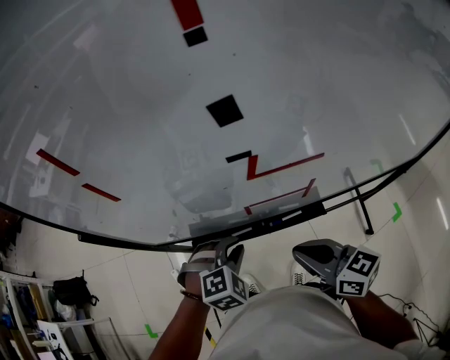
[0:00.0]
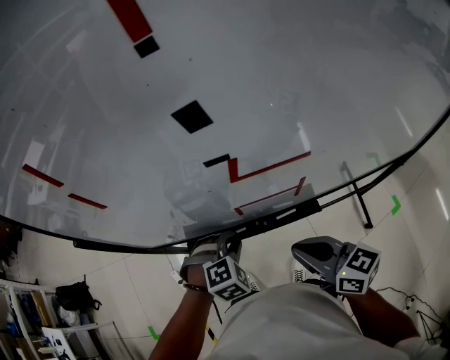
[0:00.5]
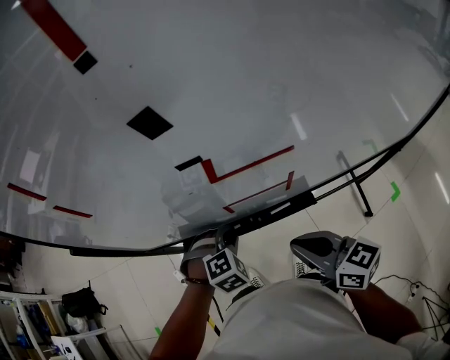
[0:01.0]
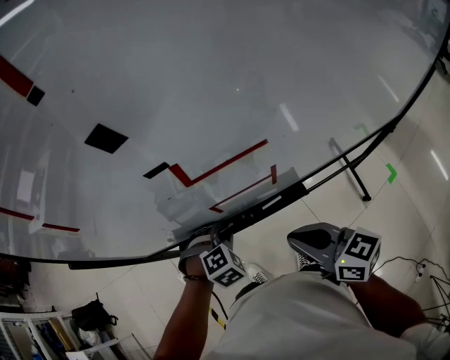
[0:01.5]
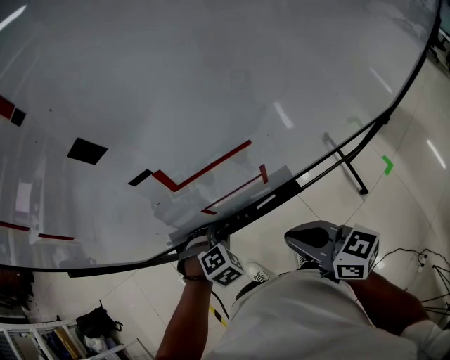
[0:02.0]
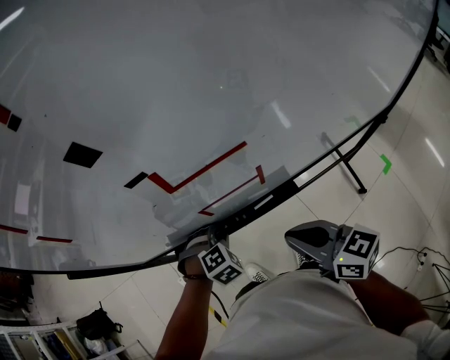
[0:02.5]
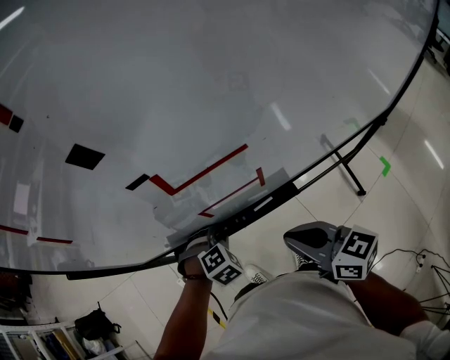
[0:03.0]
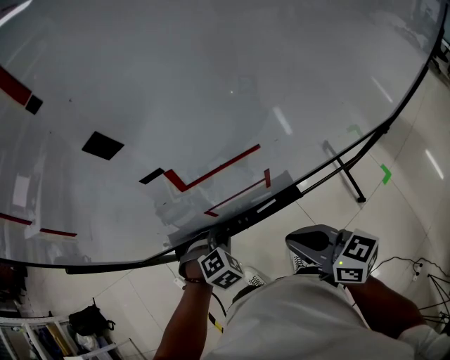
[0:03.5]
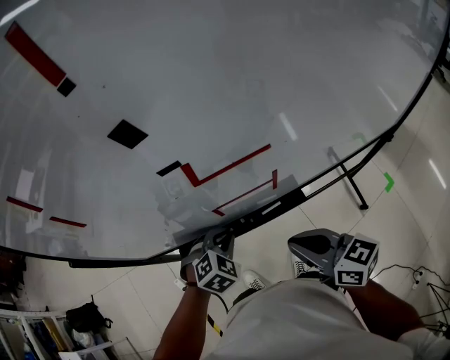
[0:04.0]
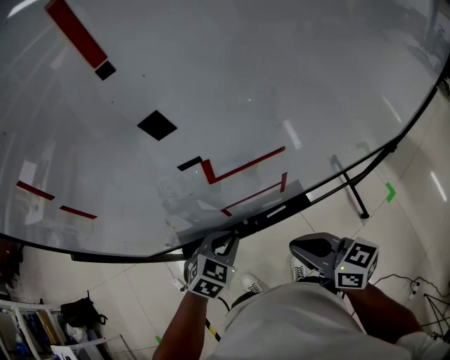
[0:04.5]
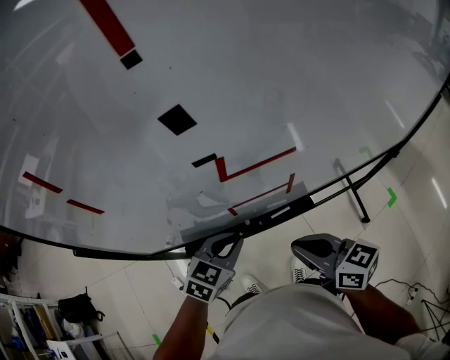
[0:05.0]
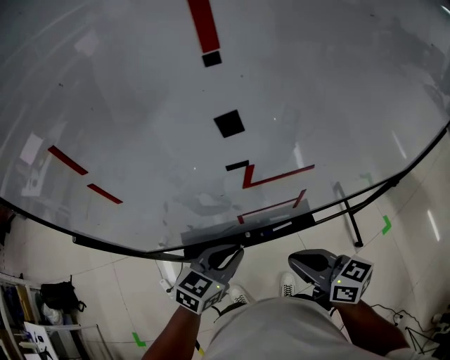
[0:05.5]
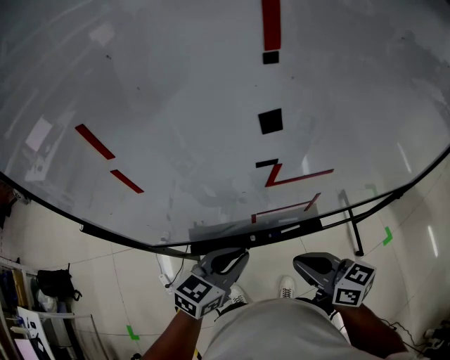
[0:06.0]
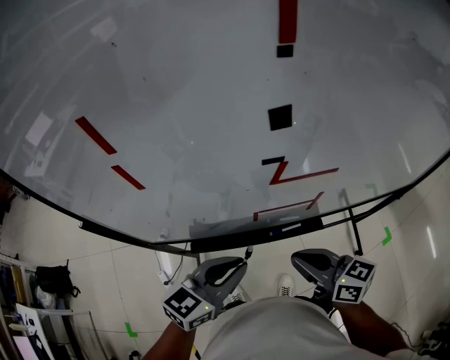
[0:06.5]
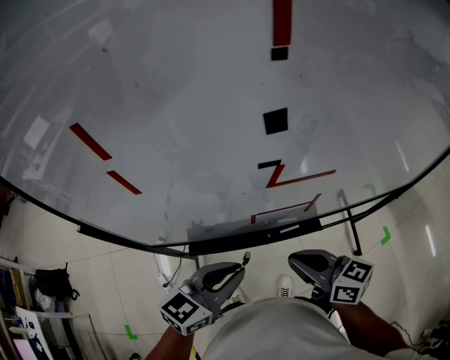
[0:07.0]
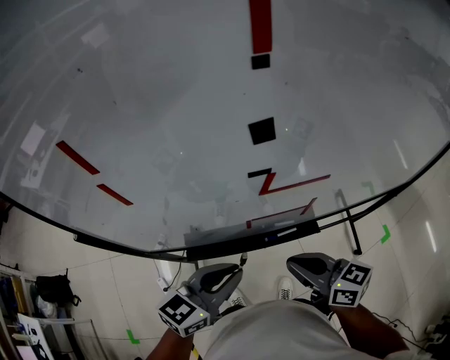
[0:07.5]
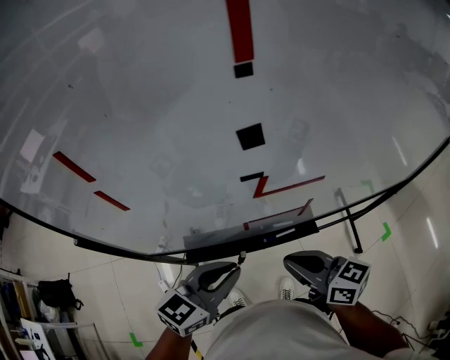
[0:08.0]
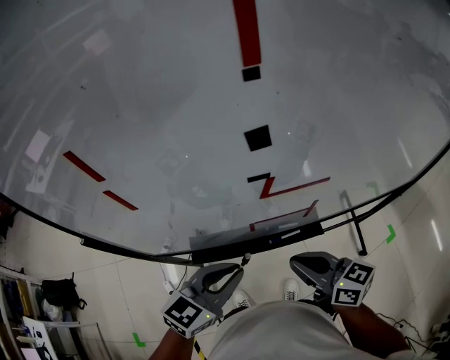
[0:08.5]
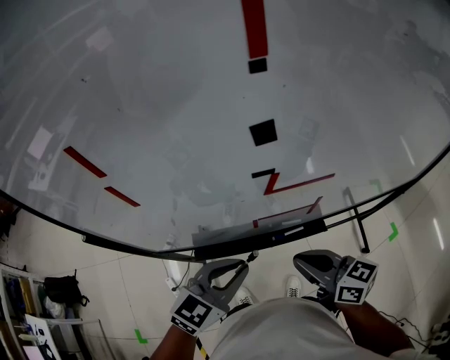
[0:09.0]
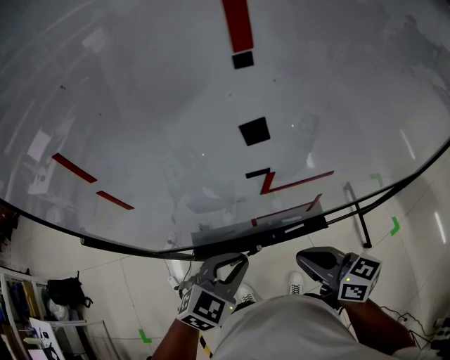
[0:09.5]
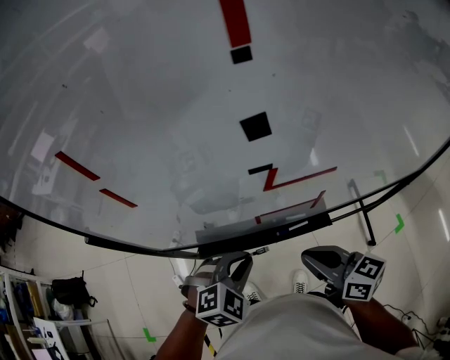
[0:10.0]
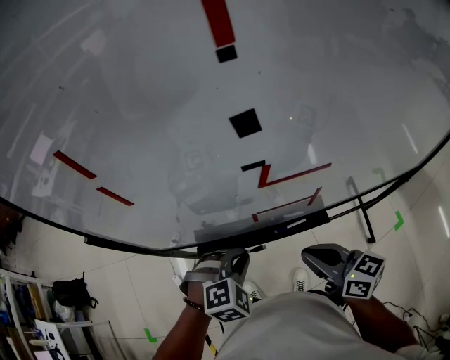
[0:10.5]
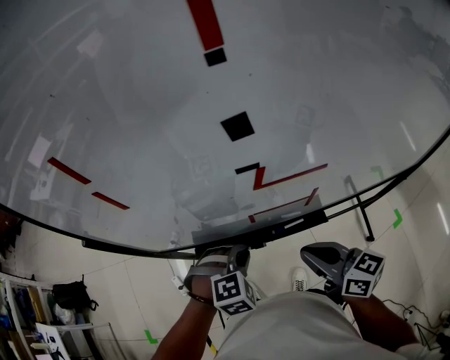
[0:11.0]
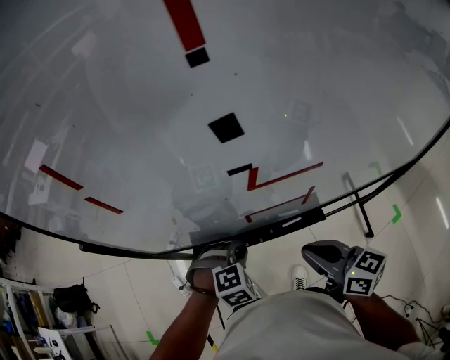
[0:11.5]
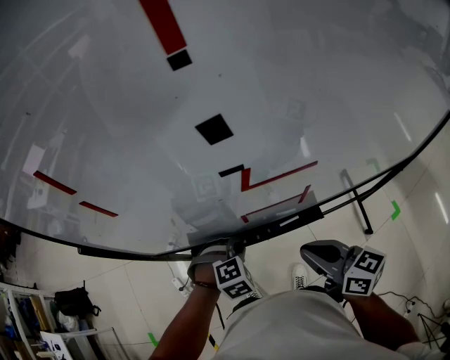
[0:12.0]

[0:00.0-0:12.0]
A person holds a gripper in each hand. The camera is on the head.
0:00.0 to 0:02.0: The left gripper heads downward, covering approximately 10 cm.
0:02.0 to 0:04.0: The grippers make only small movements.
0:04.0 to 0:06.0: The left gripper travels upward by about 10 cm, and angles its fingers upward, by about 30 degrees.
0:06.0 to 0:08.0: The grippers make only small movements.
0:08.0 to 0:10.0: The left gripper travels downward by approximately 10 cm, and tips its fingers downward by about 30 degrees.
0:10.0 to 0:12.0: The left gripper moves downward, approximately 10 cm, and swivels roughly 20 degrees.

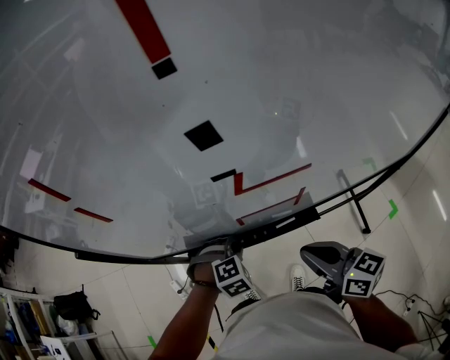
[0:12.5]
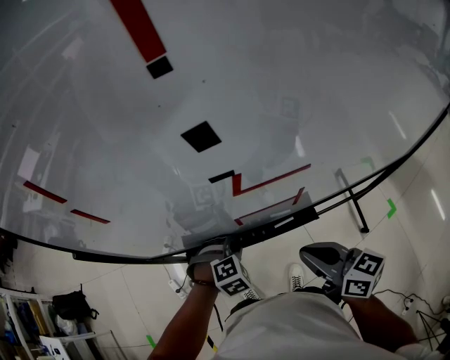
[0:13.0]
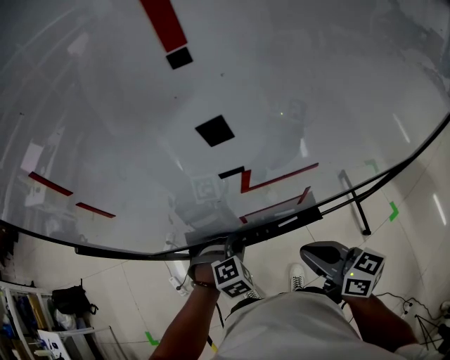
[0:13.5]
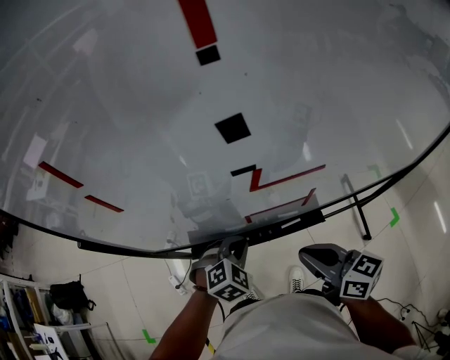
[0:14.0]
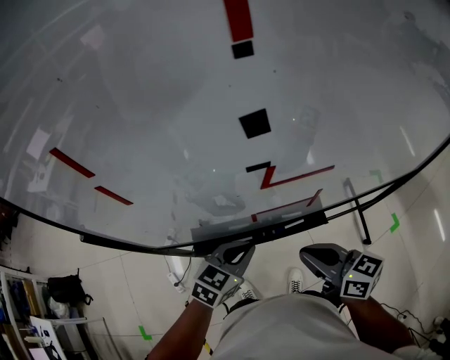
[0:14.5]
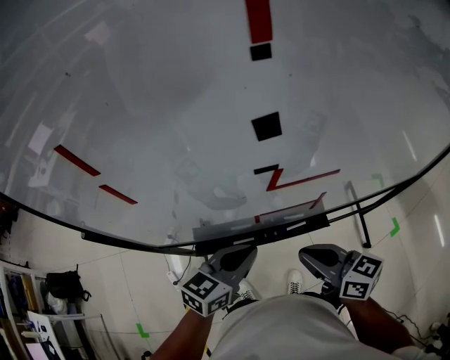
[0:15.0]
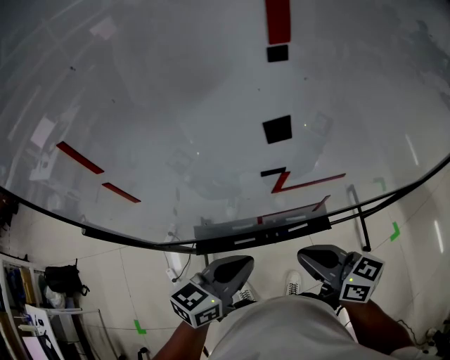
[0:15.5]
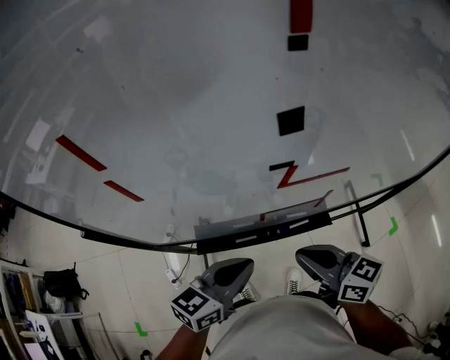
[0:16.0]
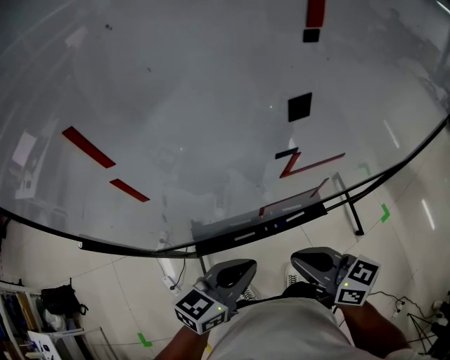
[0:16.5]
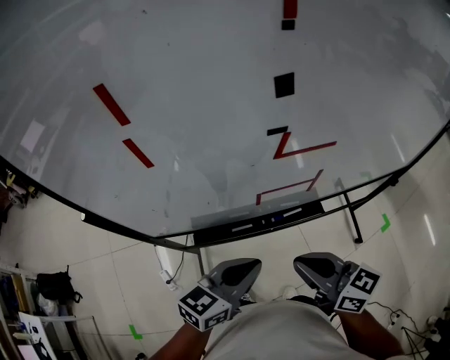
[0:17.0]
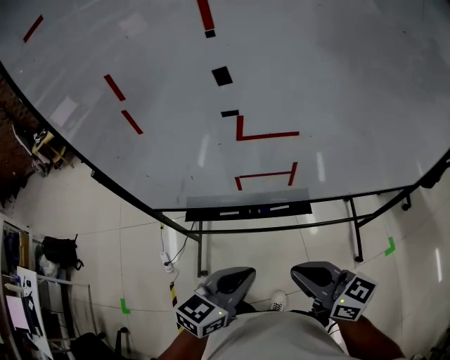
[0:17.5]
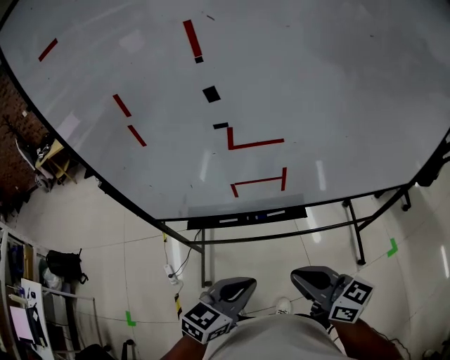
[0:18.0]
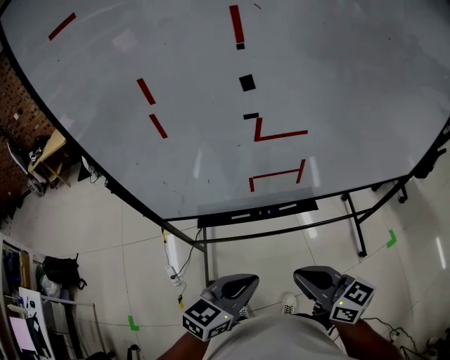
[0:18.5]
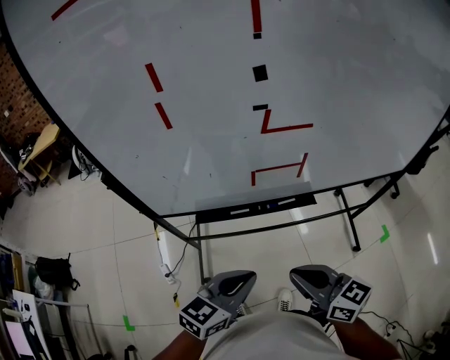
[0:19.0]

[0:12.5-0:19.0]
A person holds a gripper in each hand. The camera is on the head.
0:12.5 to 0:14.5: The left gripper is displaced upward by roughly 10 cm, and tilts its fingers some 30 degrees upward.
0:14.5 to 0:17.0: The left gripper is displaced backward and upward by about 10 cm, and changes its angle by approximately 20 degrees. Meanwhile the right gripper heads backward, covering roughly 5 cm.
0:17.0 to 0:19.0: Both grippers move backward, some 10 cm.

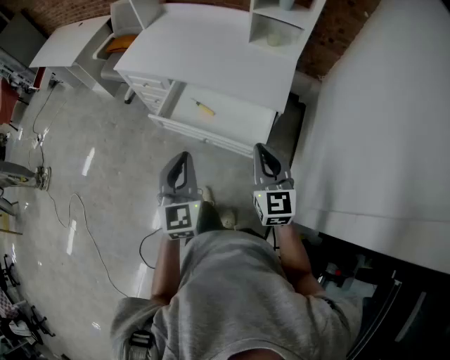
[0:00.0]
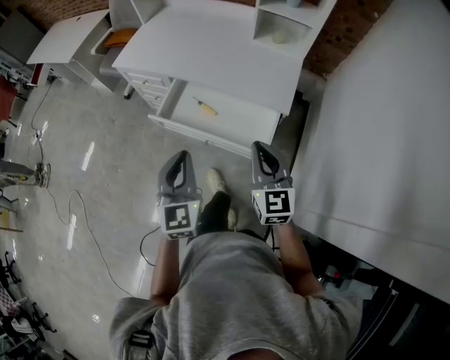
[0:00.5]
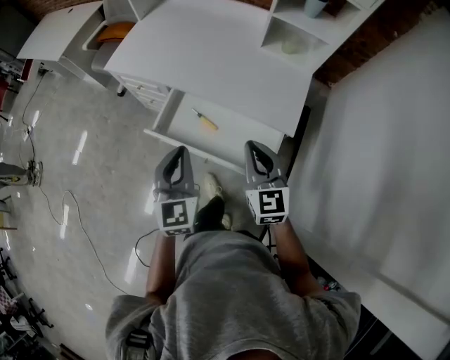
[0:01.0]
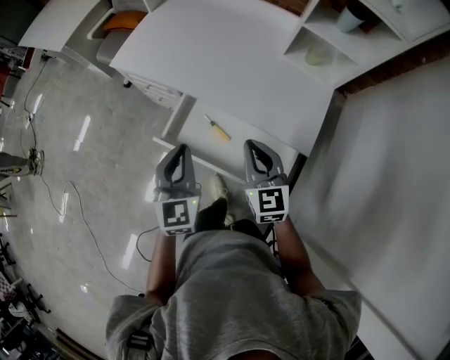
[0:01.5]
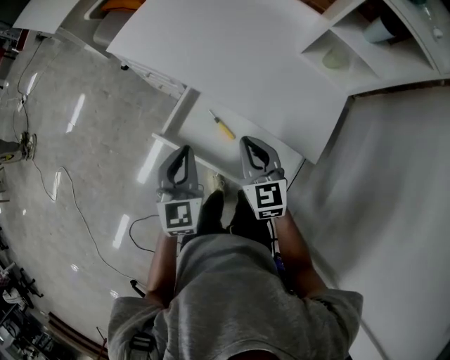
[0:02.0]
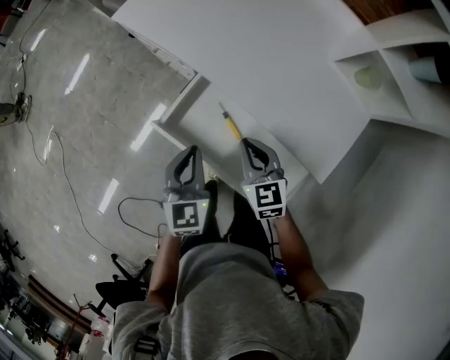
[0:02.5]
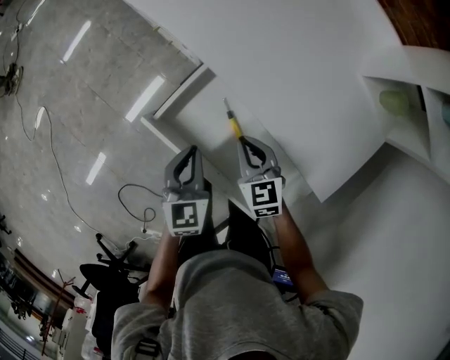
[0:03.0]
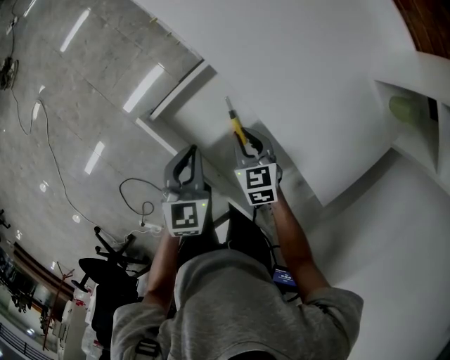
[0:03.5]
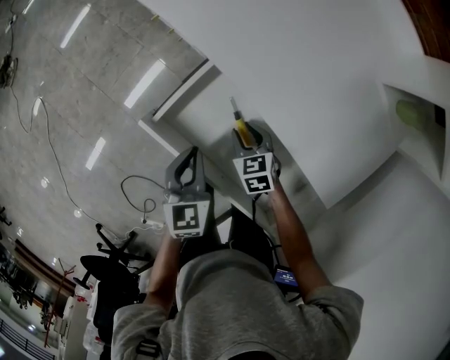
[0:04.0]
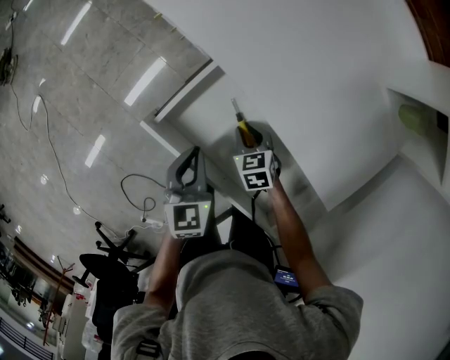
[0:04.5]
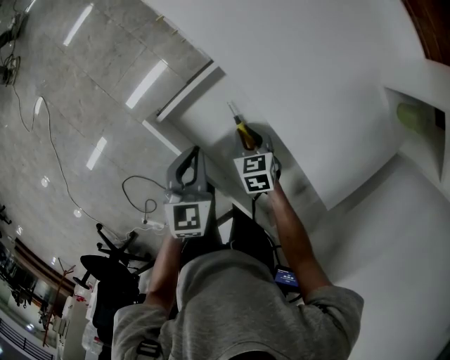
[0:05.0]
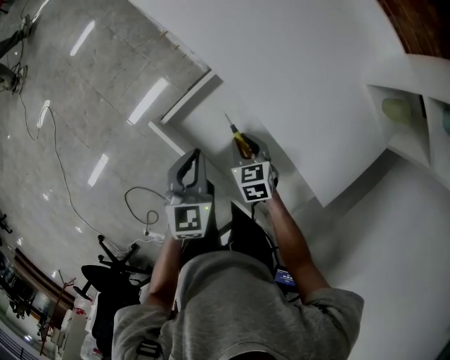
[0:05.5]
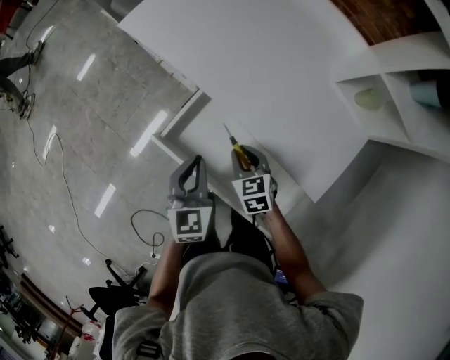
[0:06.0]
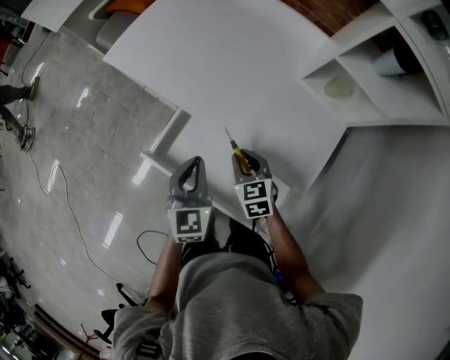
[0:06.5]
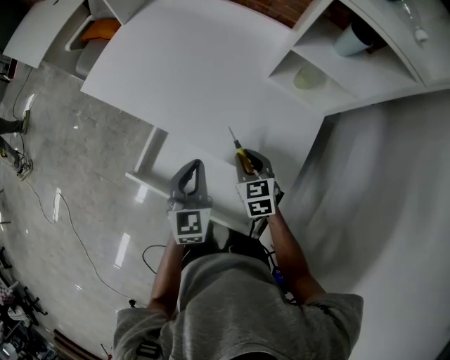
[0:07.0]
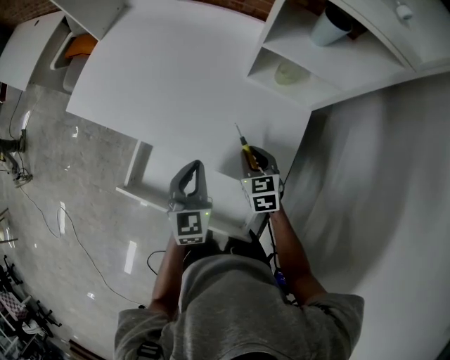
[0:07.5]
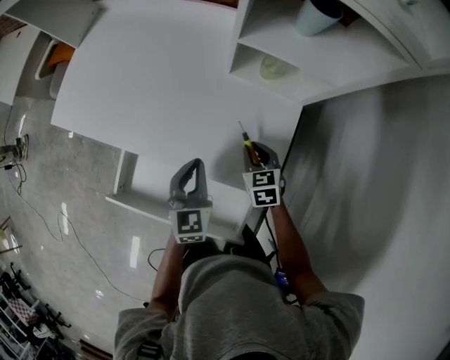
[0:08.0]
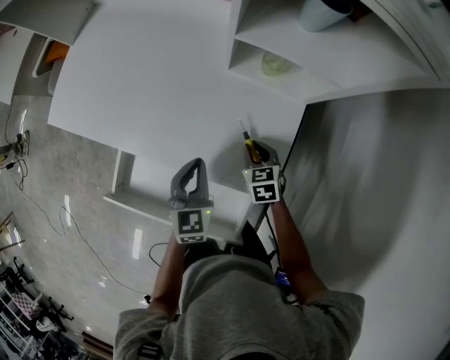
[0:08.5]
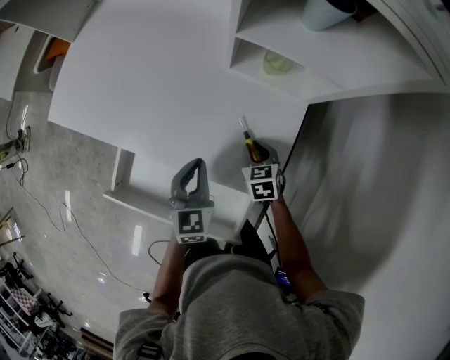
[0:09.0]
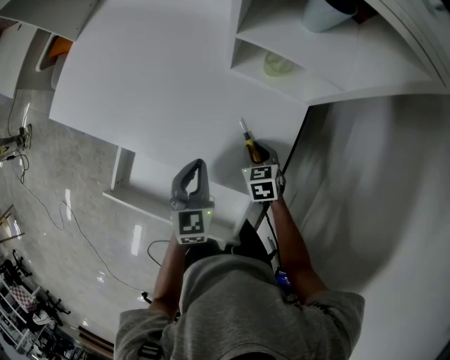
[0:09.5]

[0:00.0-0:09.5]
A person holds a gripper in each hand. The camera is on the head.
0:00.0 to 0:02.0: The grippers both shift forward by approximately 30 cm. The right gripper rotates approximately 20 degrees.
0:02.0 to 0:04.0: The grippers both shift downward by some 25 cm. The right gripper tips its fingers downward by approximately 30 degrees, and opens. The left gripper changes its angle by approximately 30 degrees.
0:04.0 to 0:05.5: Both grippers travel together upward, some 5 cm.
0:05.5 to 0:07.5: The right gripper shifts by some 35 cm, and swivels about 30 degrees, while the left gripper ends up some 30 cm from where it was, and swivels approximately 30 degrees.
0:07.5 to 0:09.5: The left gripper travels to the right and downward by roughly 10 cm, while the right gripper heads downward and to the right, covering some 15 cm.
